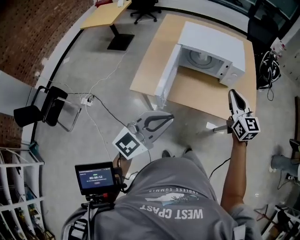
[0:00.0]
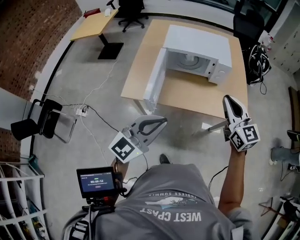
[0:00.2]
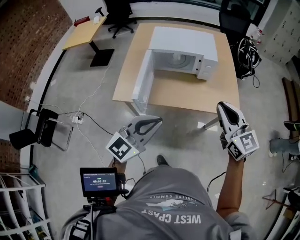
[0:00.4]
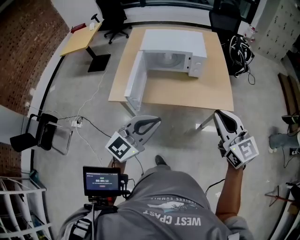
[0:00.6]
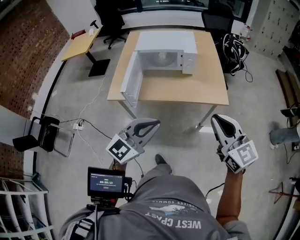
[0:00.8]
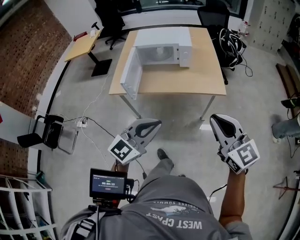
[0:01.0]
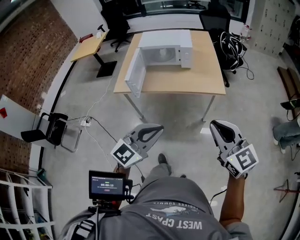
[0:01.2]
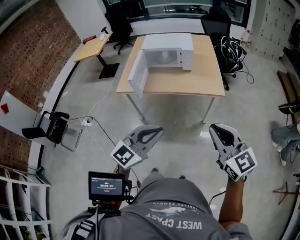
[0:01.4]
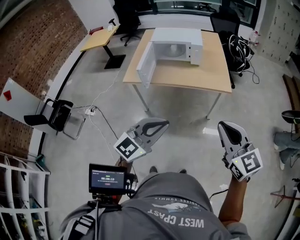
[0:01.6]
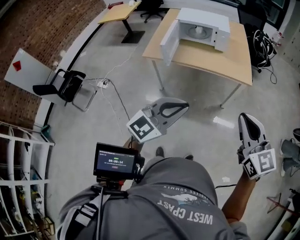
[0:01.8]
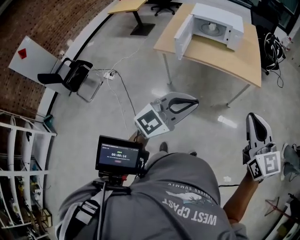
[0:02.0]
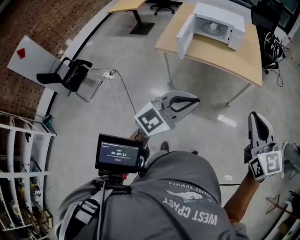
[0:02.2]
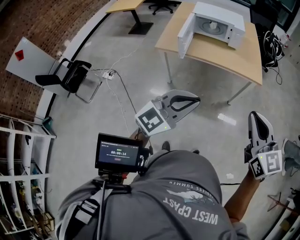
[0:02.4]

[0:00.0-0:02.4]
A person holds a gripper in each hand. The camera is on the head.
0.0 to 1.2 s: Both grippers move backward and to the right, about 40 cm.
1.2 to 2.4 s: Both grippers move backward and to the left, approximately 15 cm.

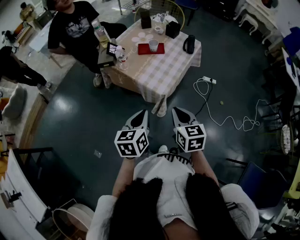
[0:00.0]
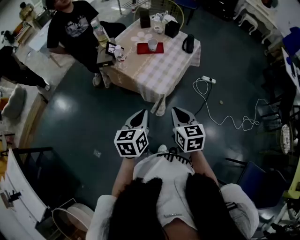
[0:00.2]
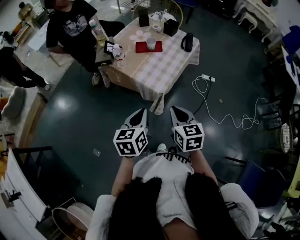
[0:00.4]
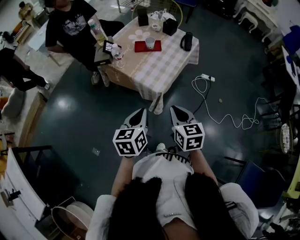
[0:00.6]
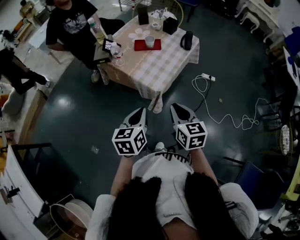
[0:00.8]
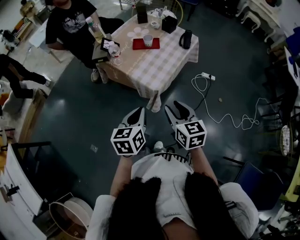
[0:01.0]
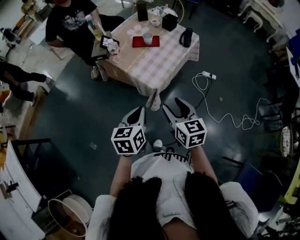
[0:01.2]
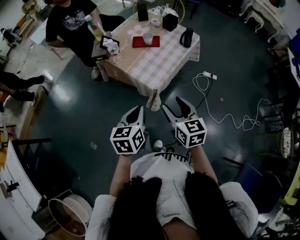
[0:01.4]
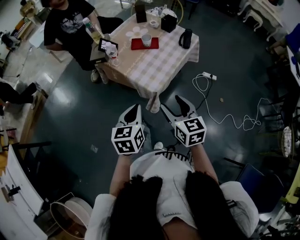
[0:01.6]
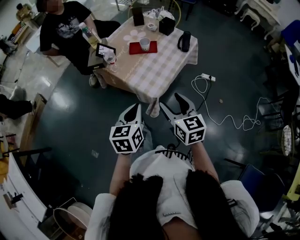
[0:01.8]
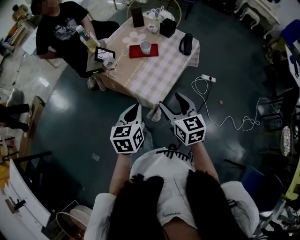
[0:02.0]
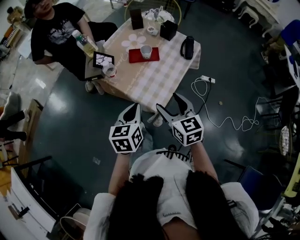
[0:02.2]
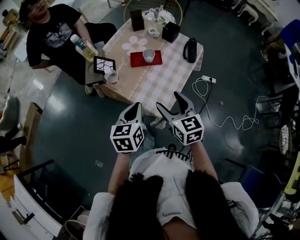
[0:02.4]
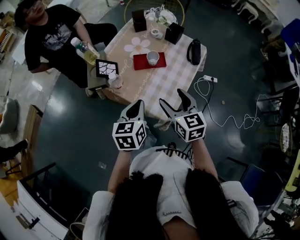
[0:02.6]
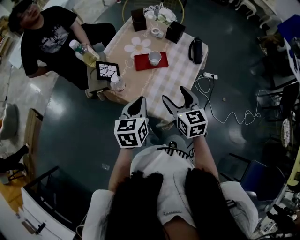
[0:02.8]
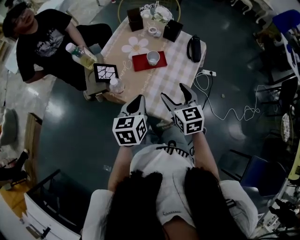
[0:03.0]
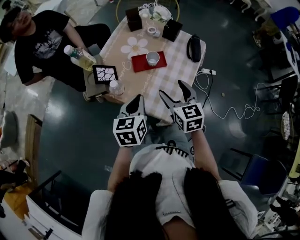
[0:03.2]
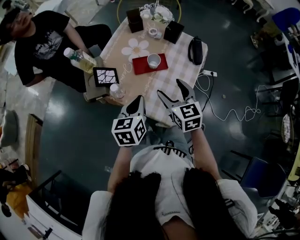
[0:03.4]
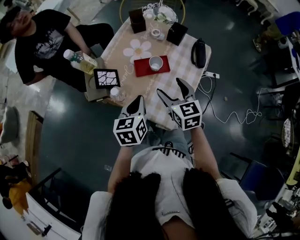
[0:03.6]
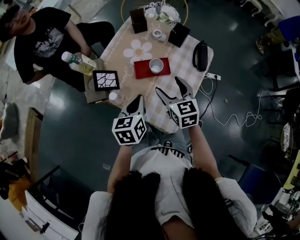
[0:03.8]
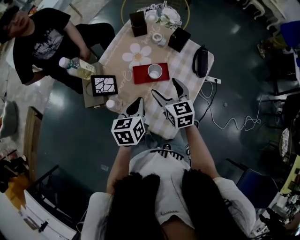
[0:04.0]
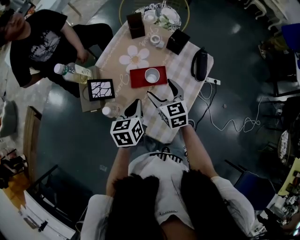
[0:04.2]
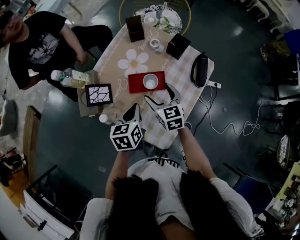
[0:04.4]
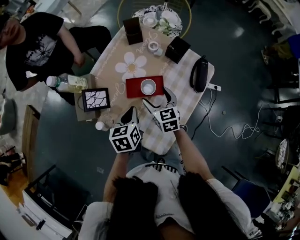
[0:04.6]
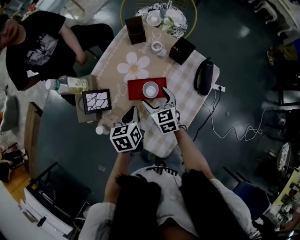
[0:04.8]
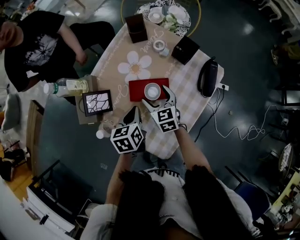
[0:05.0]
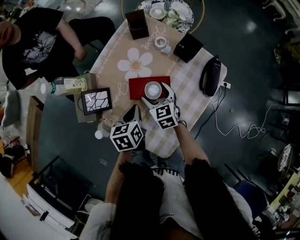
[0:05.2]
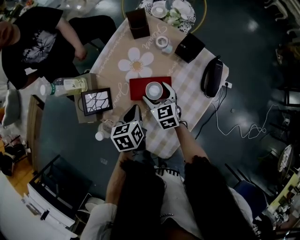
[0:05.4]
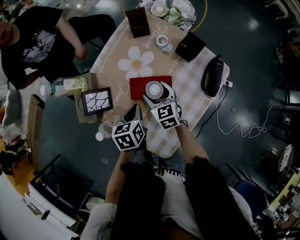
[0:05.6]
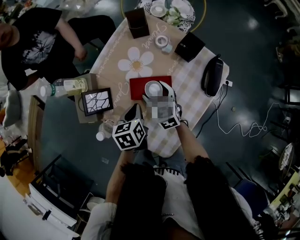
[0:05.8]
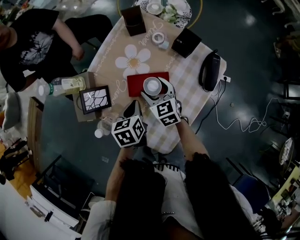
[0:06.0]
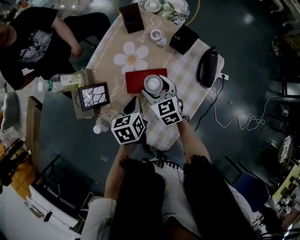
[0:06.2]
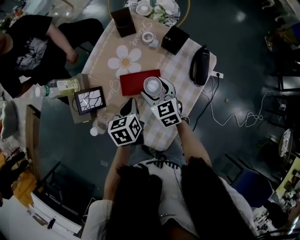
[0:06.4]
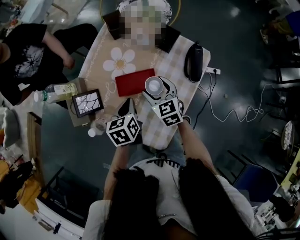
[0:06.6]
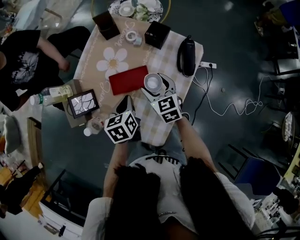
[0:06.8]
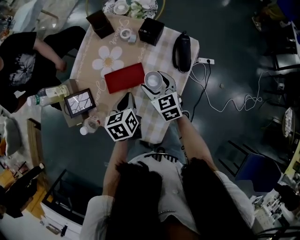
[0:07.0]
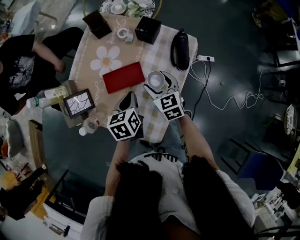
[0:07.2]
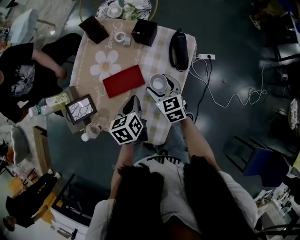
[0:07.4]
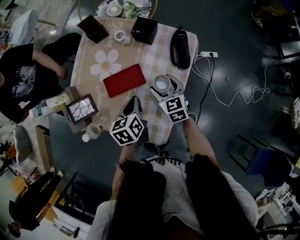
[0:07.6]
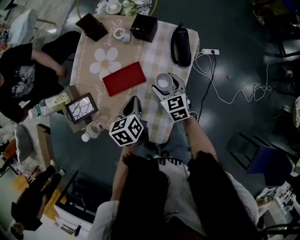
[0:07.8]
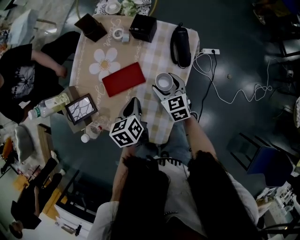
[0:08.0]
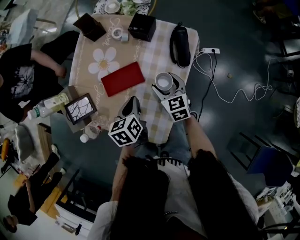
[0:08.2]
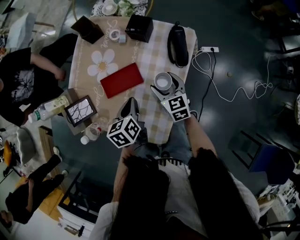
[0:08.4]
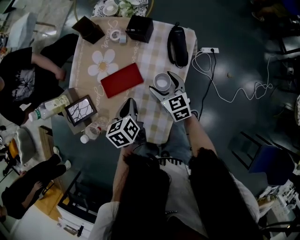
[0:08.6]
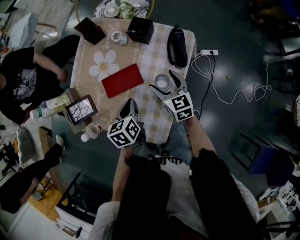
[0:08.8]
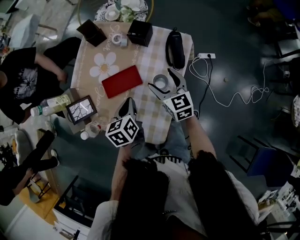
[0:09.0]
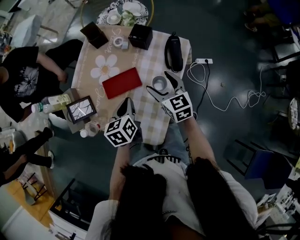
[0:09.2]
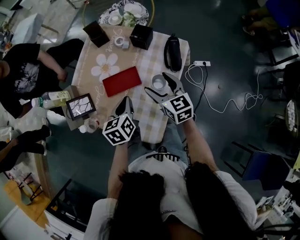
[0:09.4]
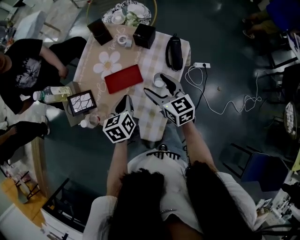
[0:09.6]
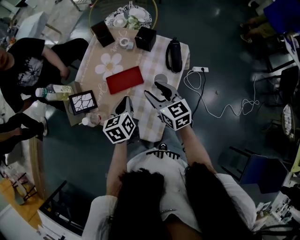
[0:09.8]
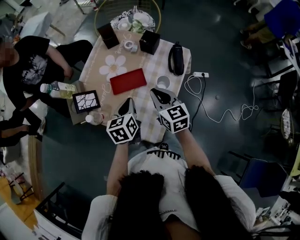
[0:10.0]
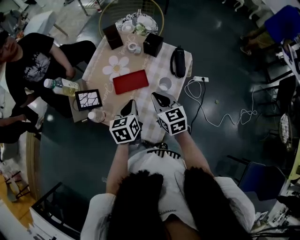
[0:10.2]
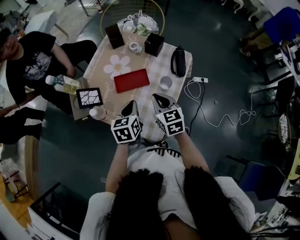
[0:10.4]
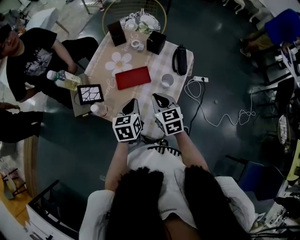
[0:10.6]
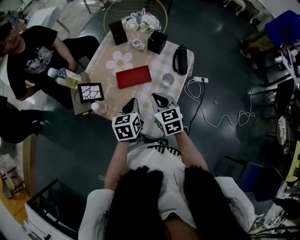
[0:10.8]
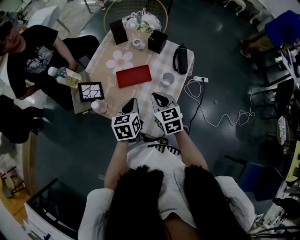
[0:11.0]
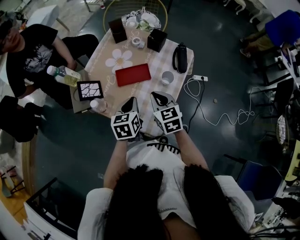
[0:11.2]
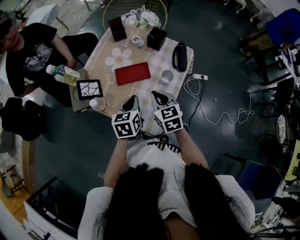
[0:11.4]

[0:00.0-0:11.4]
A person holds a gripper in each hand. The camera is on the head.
0.0 to 1.4 s: The right gripper opens its fingers.
1.4 to 2.8 s: Both grippers travel together forward, approximately 25 cm.
2.8 to 4.2 s: The grippers both shift forward and downward by some 15 cm.
4.2 to 5.6 s: Both grippers travel together downward and forward, approximately 10 cm.
5.6 to 7.2 s: The right gripper heads to the right and backward, covering roughly 15 cm, while the left gripper is displaced to the right by some 10 cm.
7.2 to 8.6 s: The grippers move only a little.
8.6 to 10.0 s: The right gripper is displaced upward, backward and to the left by some 15 cm, and closes; the left gripper goes some 10 cm upward.
10.0 to 11.4 s: The right gripper shifts by approximately 5 cm.

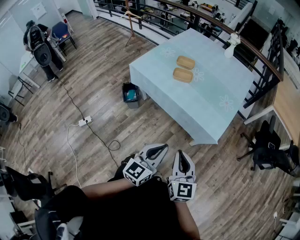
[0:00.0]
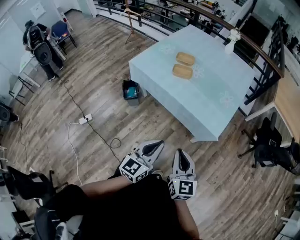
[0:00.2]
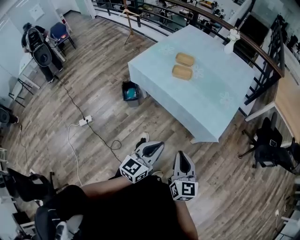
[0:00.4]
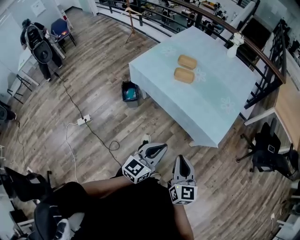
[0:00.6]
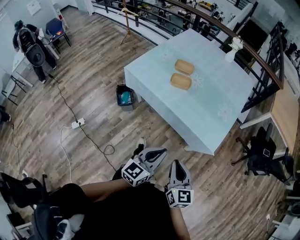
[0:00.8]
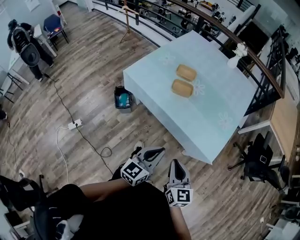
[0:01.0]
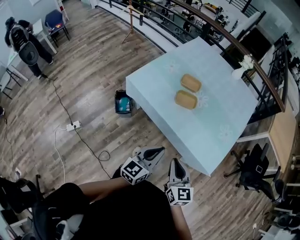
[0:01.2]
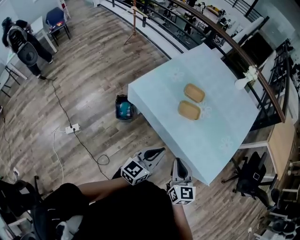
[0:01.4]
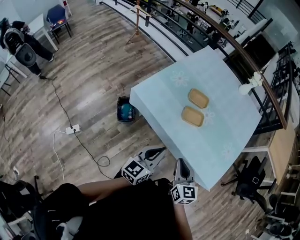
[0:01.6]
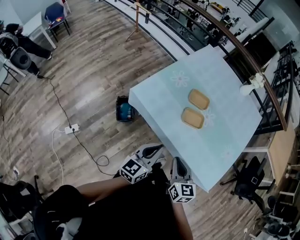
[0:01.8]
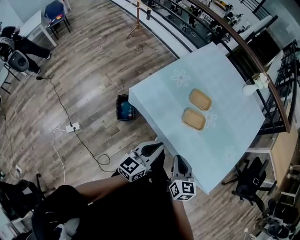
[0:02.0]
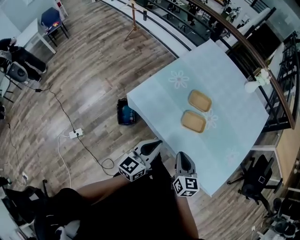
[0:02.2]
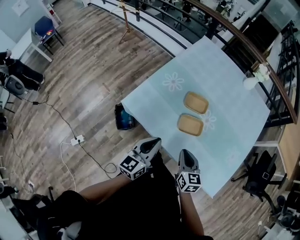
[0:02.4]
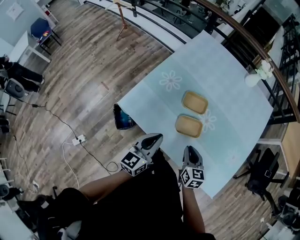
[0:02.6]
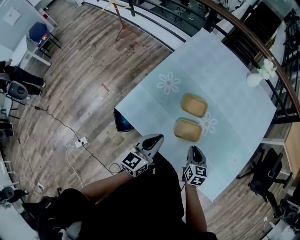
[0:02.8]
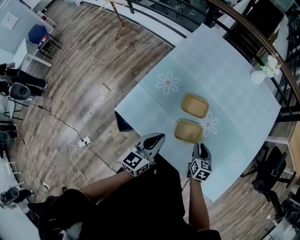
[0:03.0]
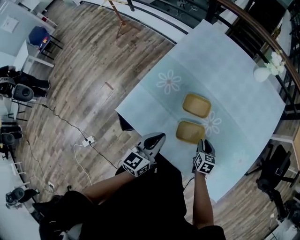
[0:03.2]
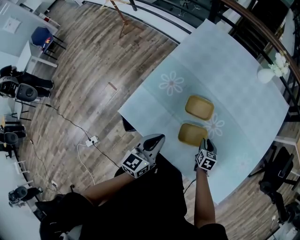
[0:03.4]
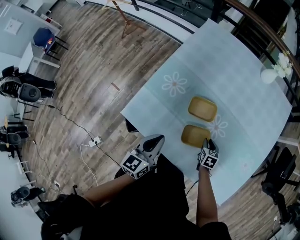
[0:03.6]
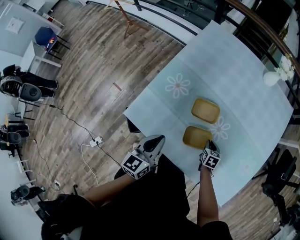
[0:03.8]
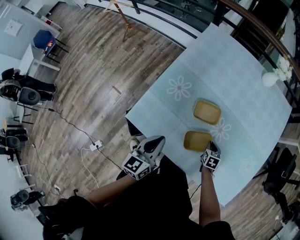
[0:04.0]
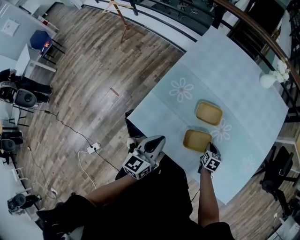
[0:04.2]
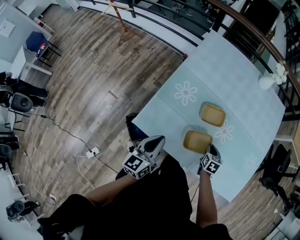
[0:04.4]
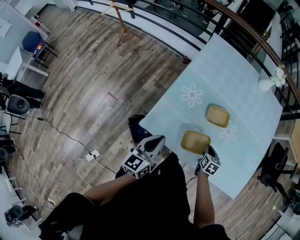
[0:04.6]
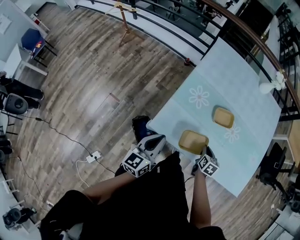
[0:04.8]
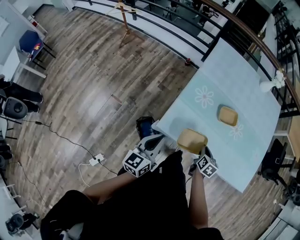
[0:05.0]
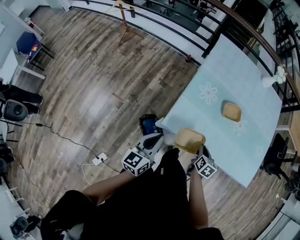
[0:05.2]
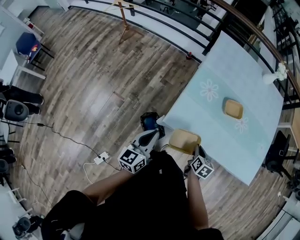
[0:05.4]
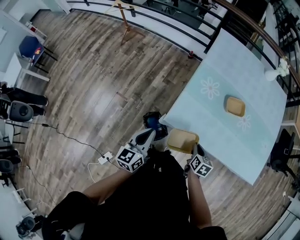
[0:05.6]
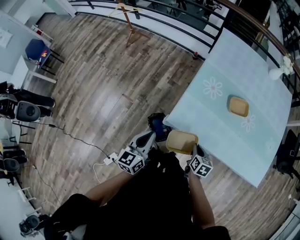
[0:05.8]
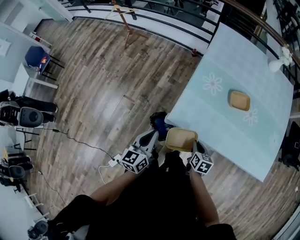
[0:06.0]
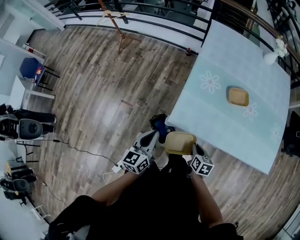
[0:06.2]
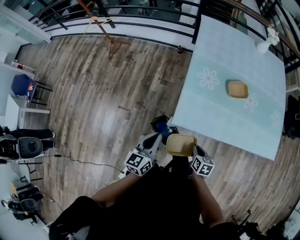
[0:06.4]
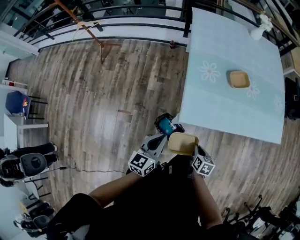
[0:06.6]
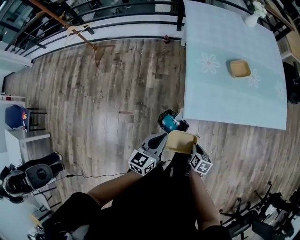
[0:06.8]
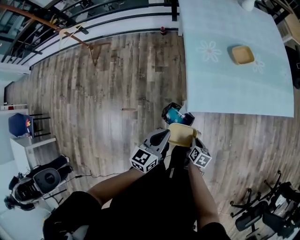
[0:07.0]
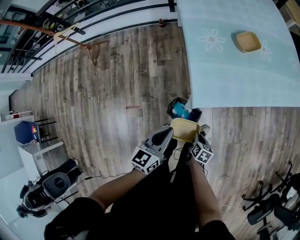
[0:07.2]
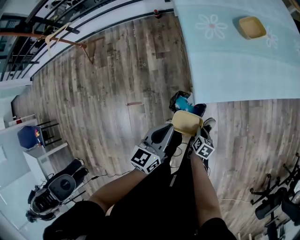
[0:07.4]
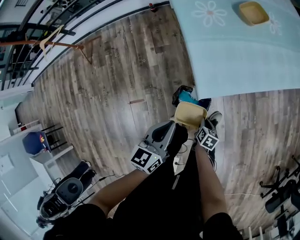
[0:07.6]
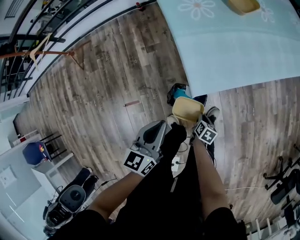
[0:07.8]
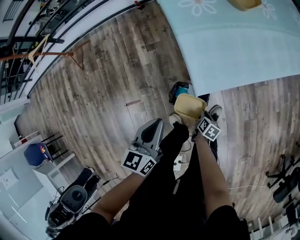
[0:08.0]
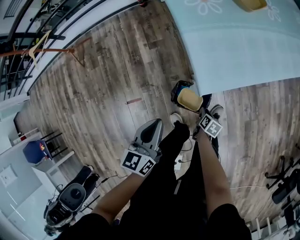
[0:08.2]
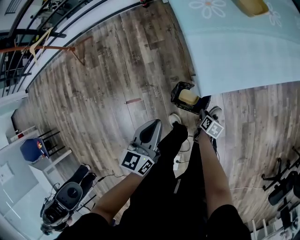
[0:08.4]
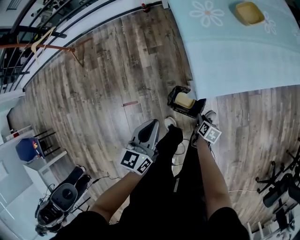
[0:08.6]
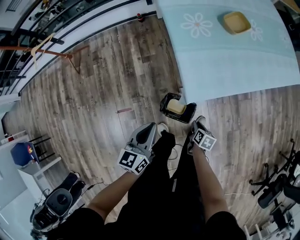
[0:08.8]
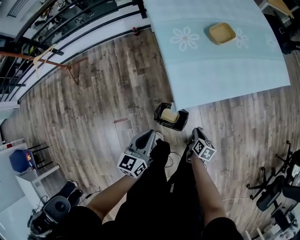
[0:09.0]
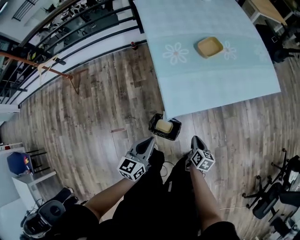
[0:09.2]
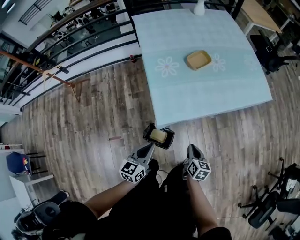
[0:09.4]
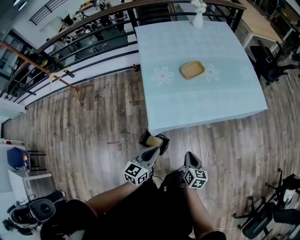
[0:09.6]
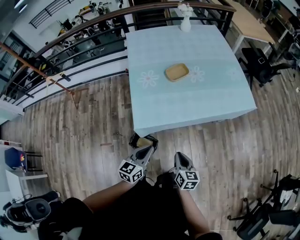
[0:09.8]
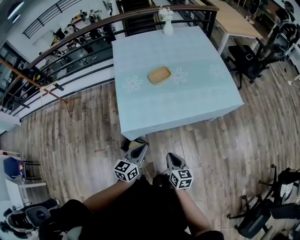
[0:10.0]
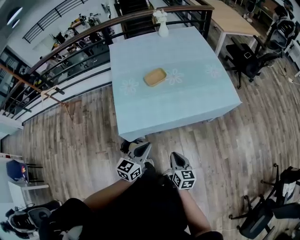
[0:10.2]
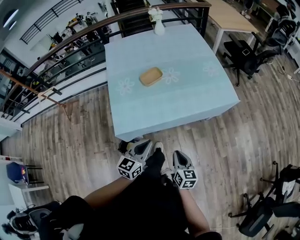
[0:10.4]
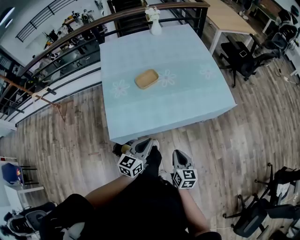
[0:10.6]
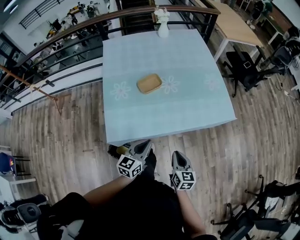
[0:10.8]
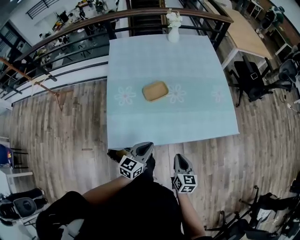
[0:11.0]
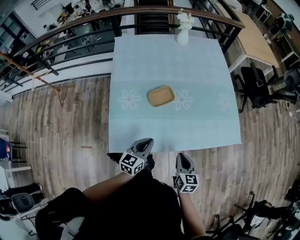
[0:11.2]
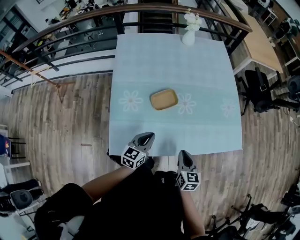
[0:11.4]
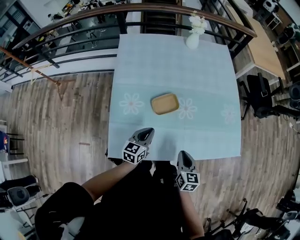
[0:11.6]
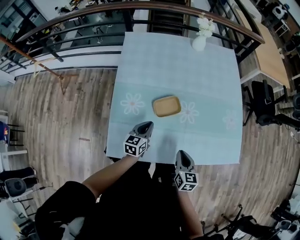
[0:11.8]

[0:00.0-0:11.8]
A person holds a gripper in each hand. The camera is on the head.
0.0 to 1.4 s: The grippers both shift forward and to the left by roughly 30 cm.
1.4 to 3.0 s: The left gripper heads forward, covering some 30 cm, while the right gripper moves forward and downward, some 40 cm, and rotates some 30 degrees.
3.0 to 4.4 s: The right gripper travels to the left by some 5 cm. The left gripper shifts roughly 15 cm to the left.
4.4 to 6.0 s: The grippers both shift to the left and backward by roughly 30 cm.
6.0 to 7.4 s: The right gripper shifts about 25 cm downward, and changes its angle by some 50 degrees; the left gripper is displaced downward by approximately 15 cm, and turns by approximately 40 degrees.
7.4 to 8.8 s: The left gripper shifts about 5 cm to the left. The right gripper moves some 10 cm downward and comes back.
8.8 to 10.4 s: The left gripper moves to the right, approximately 40 cm; the right gripper travels to the right and upward by some 50 cm, and angles its fingers upward, by some 30 degrees.
10.4 to 11.8 s: The grippers both shift forward by some 35 cm. The left gripper turns by roughly 20 degrees.
